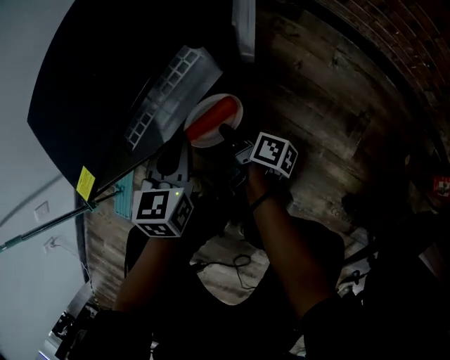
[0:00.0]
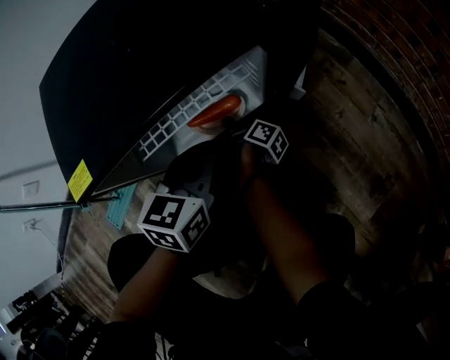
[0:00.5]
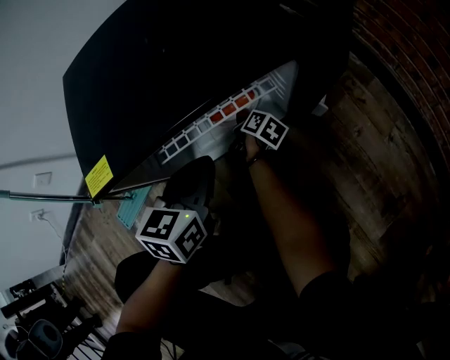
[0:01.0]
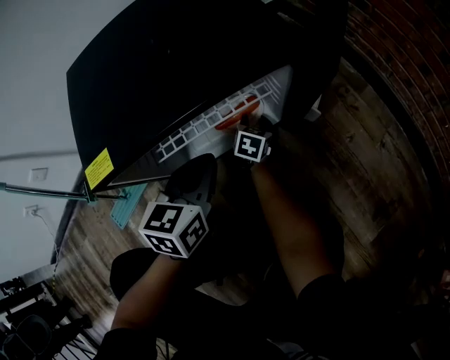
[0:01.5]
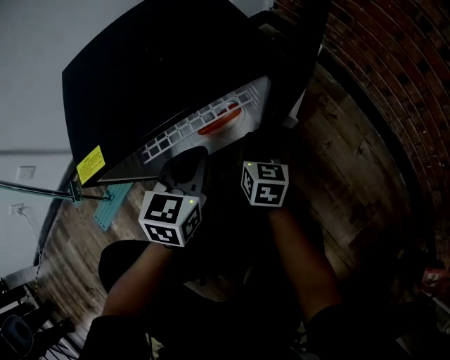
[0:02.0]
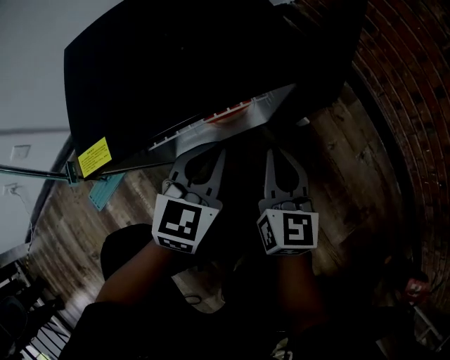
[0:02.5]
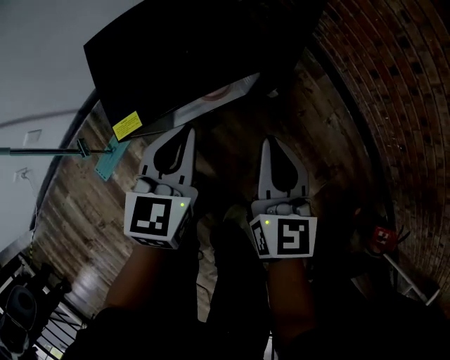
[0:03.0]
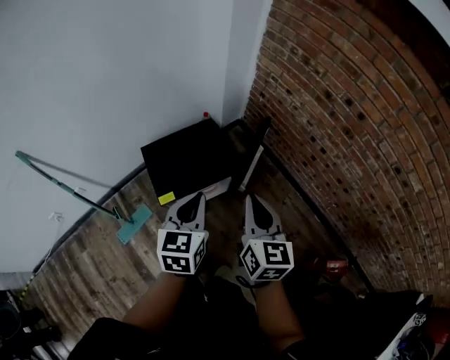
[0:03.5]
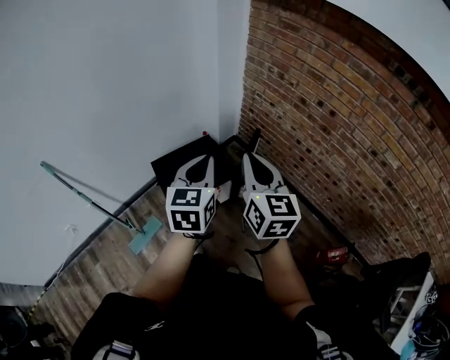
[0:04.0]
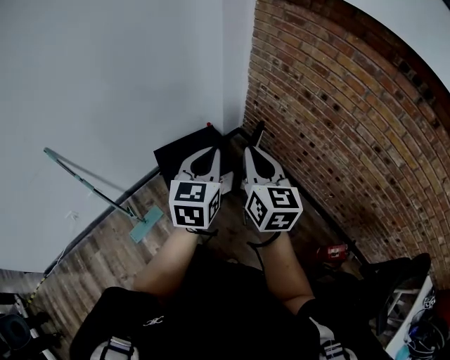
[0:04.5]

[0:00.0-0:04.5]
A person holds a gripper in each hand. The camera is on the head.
0:00.0 to 0:02.0: The left gripper changes place by roughly 5 cm.
0:02.0 to 0:04.5: The left gripper is displaced upward by some 70 cm.

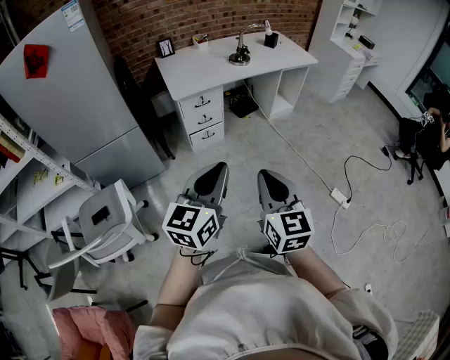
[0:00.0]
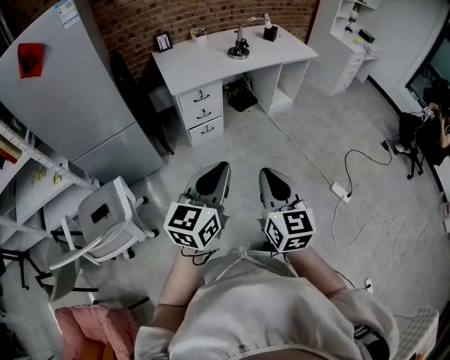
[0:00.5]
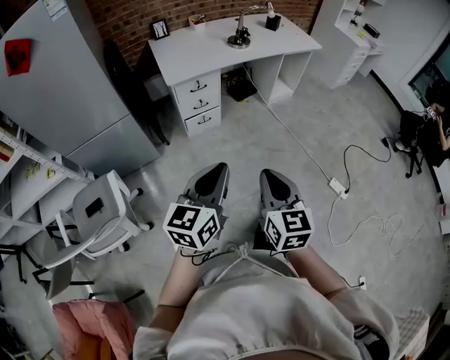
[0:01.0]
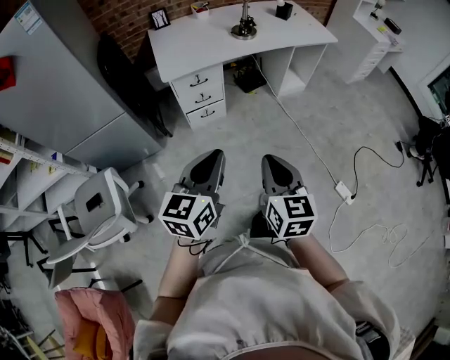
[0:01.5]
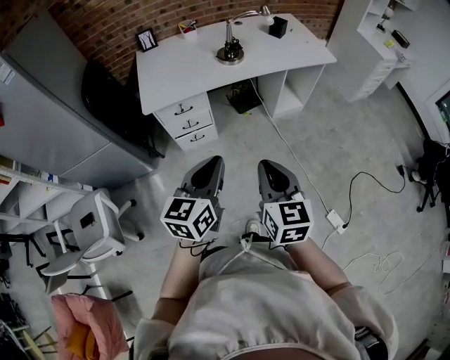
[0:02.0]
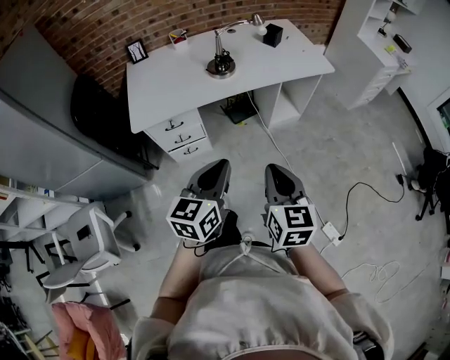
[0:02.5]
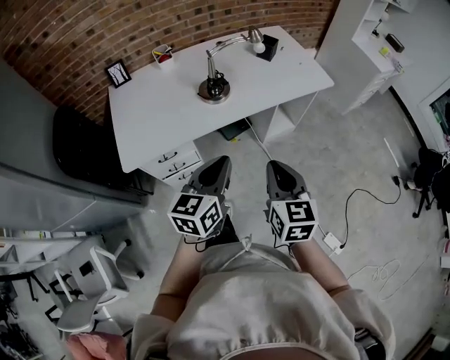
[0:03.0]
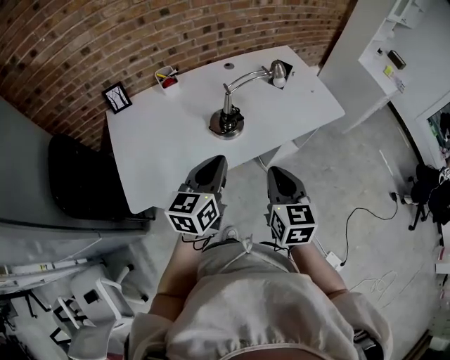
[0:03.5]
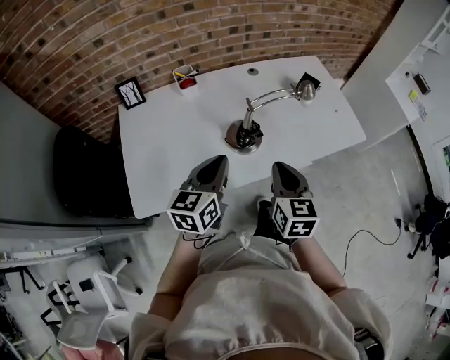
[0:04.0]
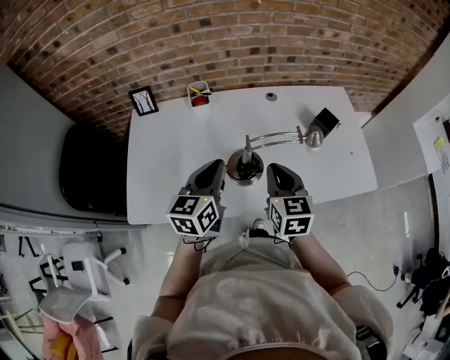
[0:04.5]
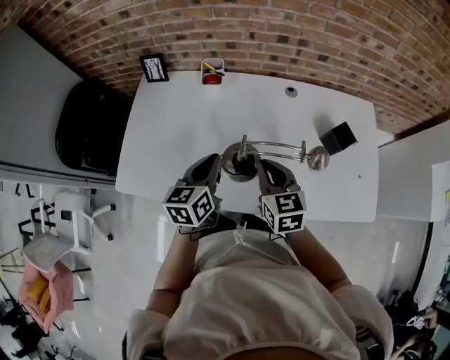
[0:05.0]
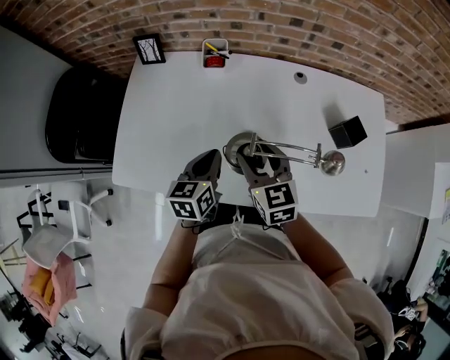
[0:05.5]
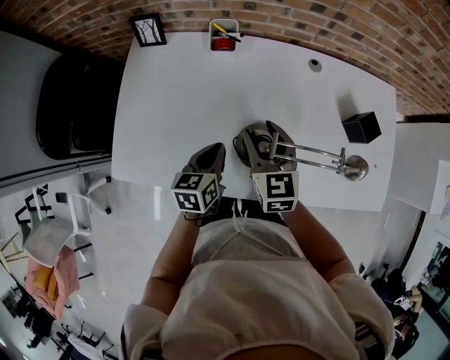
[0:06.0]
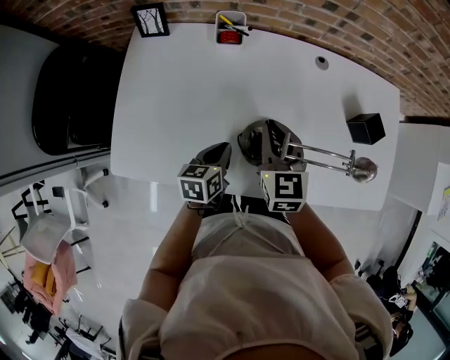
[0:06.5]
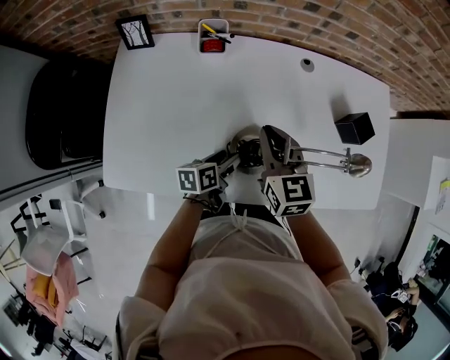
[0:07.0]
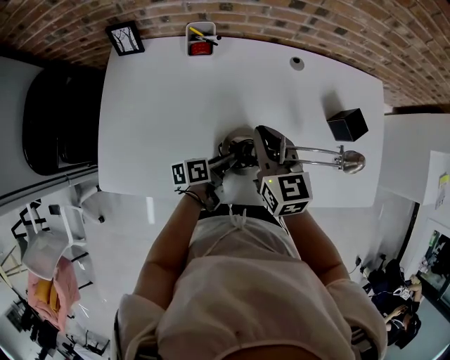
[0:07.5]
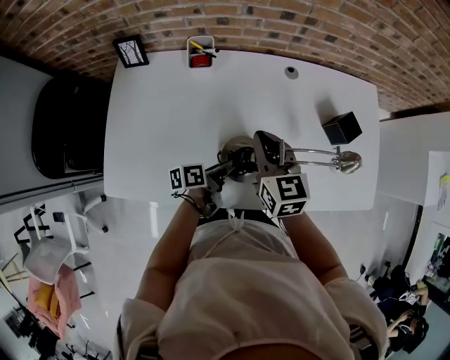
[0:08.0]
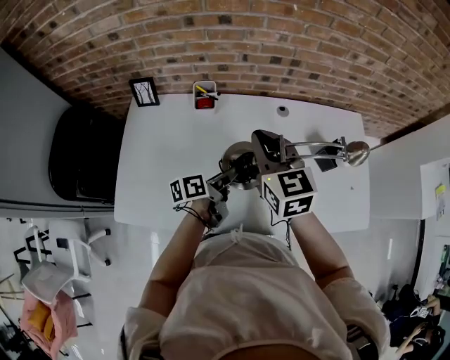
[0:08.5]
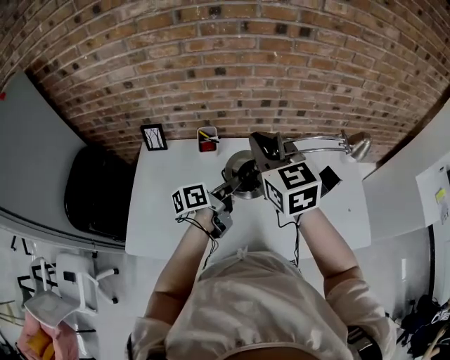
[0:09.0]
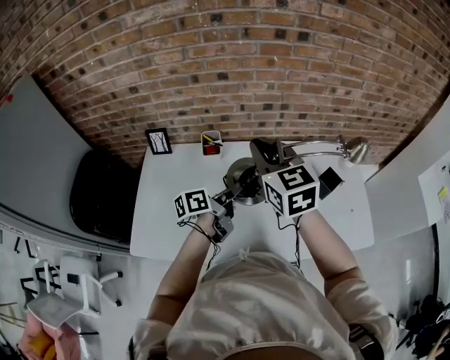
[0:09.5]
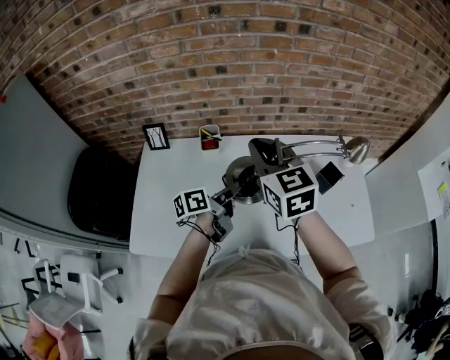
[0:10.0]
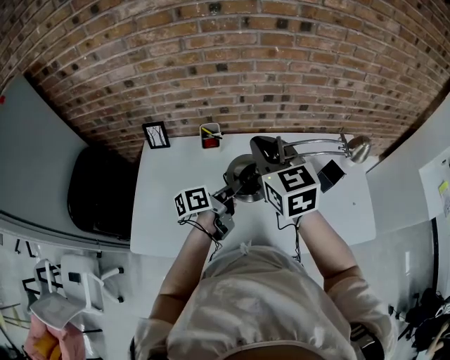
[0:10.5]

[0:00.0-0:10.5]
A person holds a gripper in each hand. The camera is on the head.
0:00.0 to 0:02.0: Both grippers move forward and to the right, roughly 35 cm.
0:02.0 to 0:04.0: The two grippers travel together, forward, approximately 50 cm.
0:04.0 to 0:06.5: The left gripper goes approximately 20 cm downward, and swivels some 40 degrees. Meanwhile the right gripper ends up roughly 25 cm from where it was, swivels roughly 30 degrees, and opens and closes again.
0:06.5 to 0:08.5: The right gripper heads upward, covering some 15 cm, while the left gripper travels upward, forward and to the right by some 15 cm, turns by about 40 degrees, and opens up.
0:08.5 to 0:10.5: Both grippers travel together upward, roughly 10 cm.

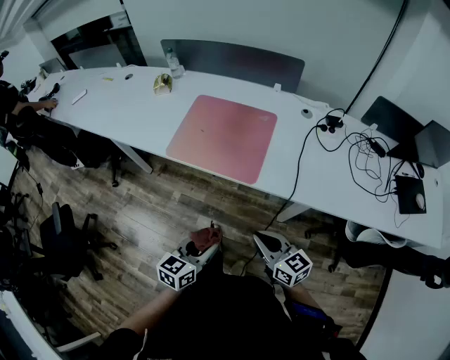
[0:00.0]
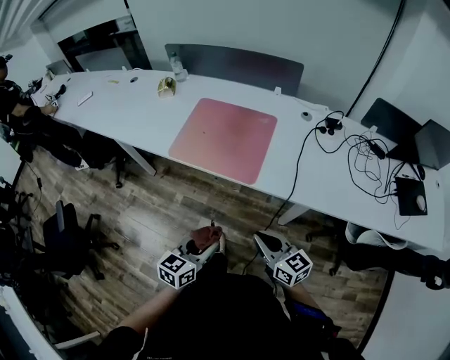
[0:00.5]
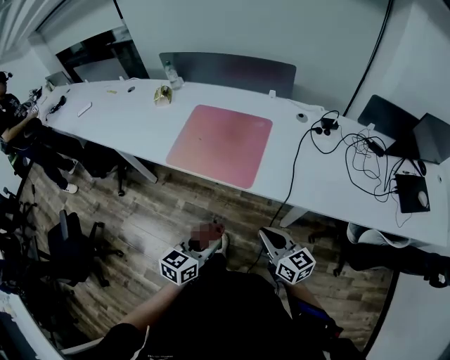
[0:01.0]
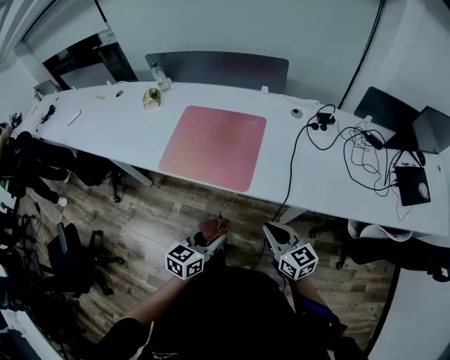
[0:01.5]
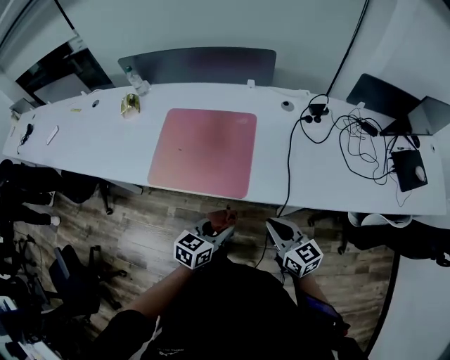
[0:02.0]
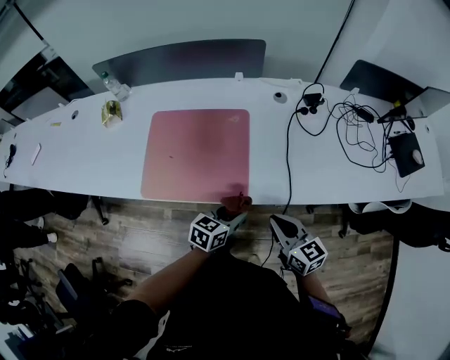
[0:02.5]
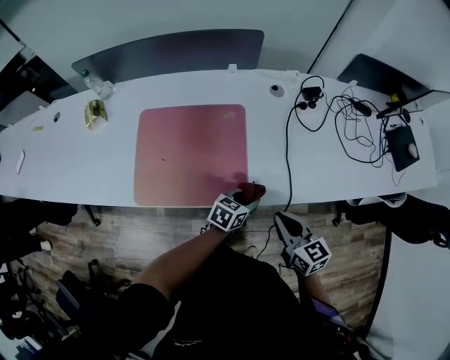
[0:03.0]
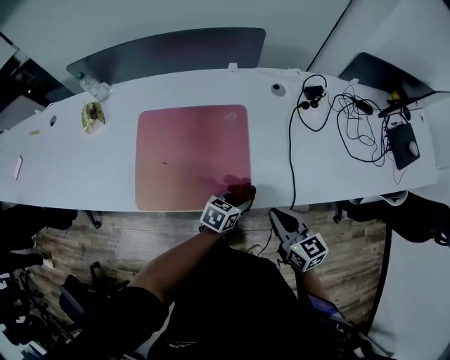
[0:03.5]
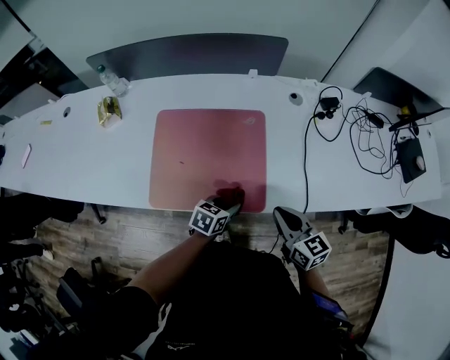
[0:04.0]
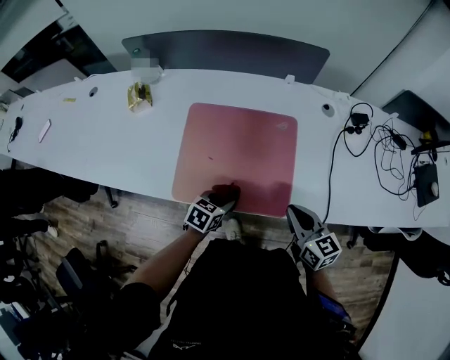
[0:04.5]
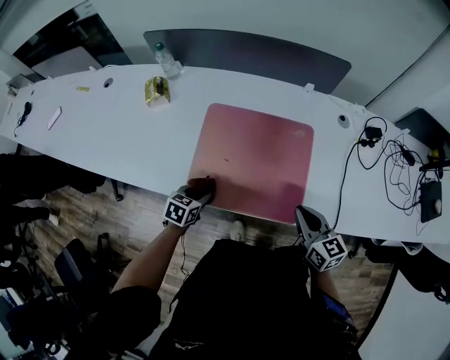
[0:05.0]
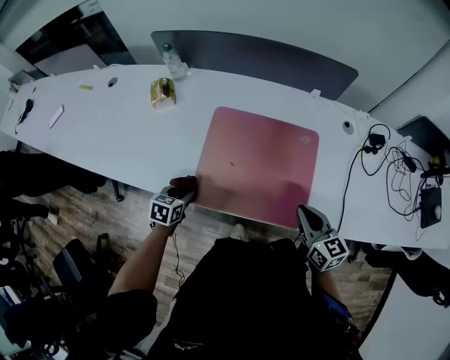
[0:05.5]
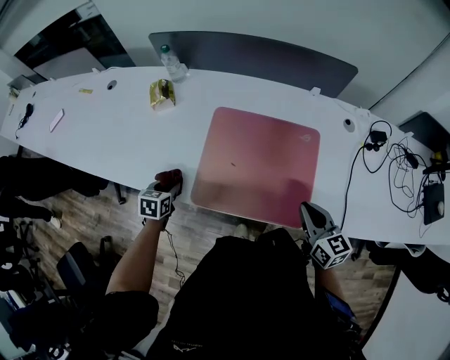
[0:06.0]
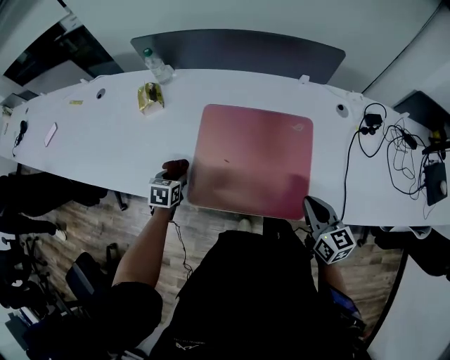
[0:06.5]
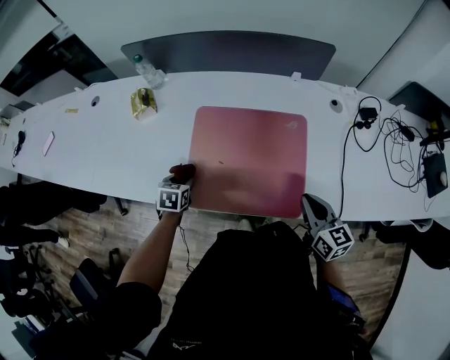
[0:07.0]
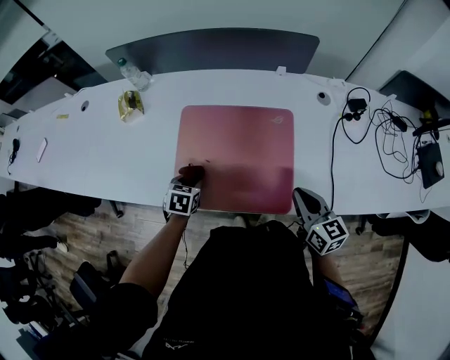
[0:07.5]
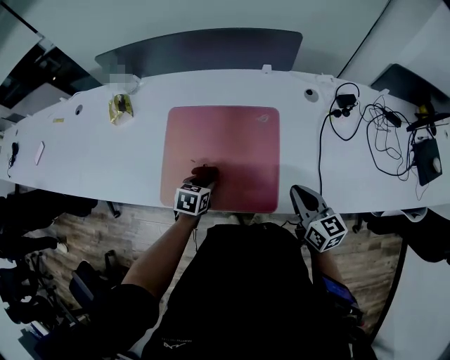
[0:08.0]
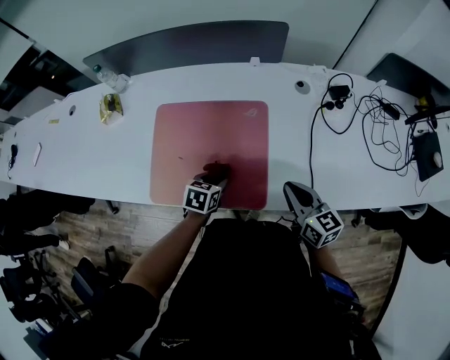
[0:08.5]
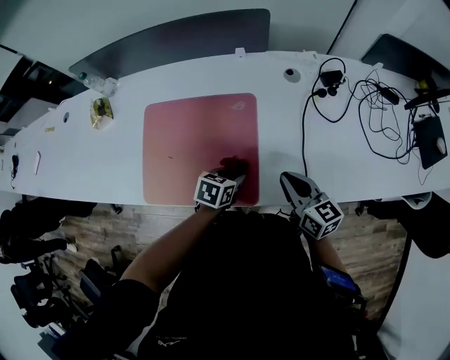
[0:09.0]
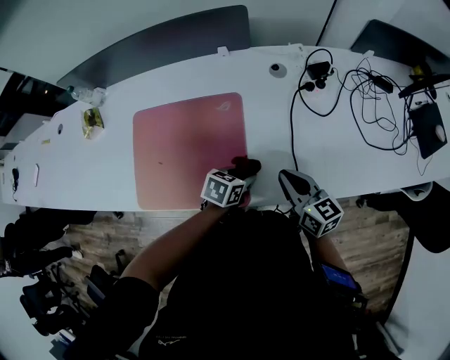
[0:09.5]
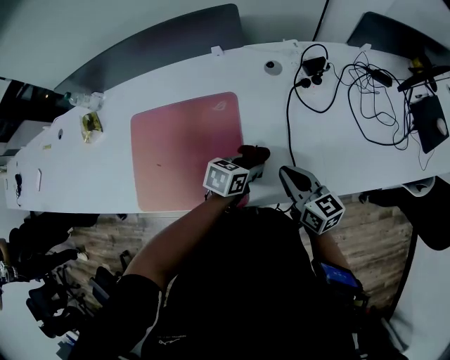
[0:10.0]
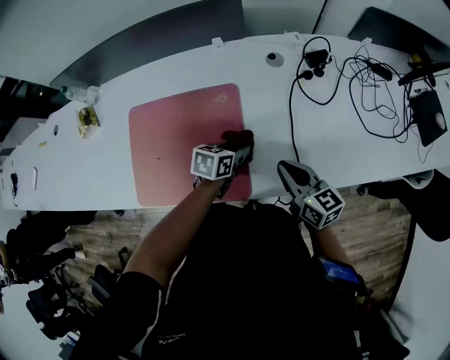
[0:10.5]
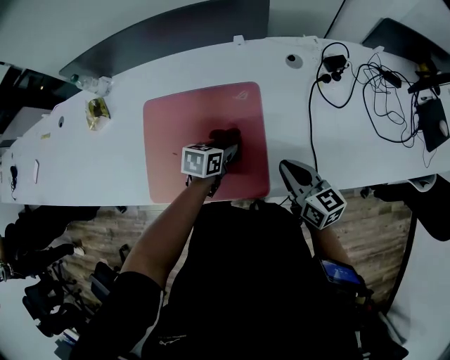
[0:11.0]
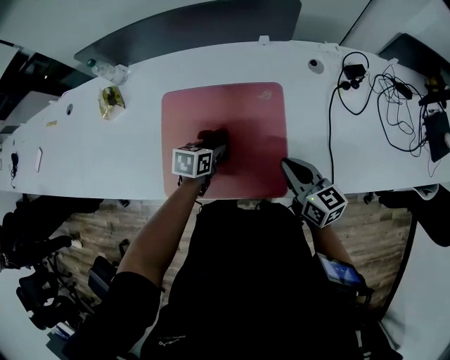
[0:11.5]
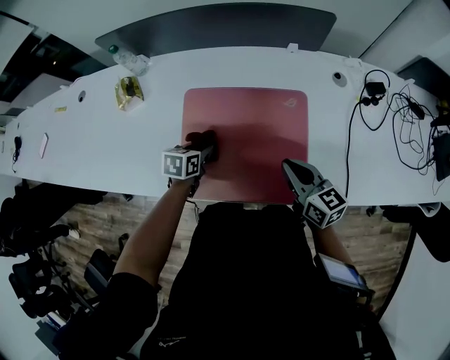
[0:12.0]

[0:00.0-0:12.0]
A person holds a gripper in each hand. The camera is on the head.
0:00.0 to 0:02.0: Both grippers travel together forward and to the right, about 15 cm.
0:02.0 to 0:04.0: The right gripper is displaced forward and to the left by some 10 cm. The left gripper moves forward, downward and to the left, roughly 20 cm, and swivels roughly 20 degrees.
0:04.0 to 0:06.0: The right gripper moves about 10 cm. The left gripper shifts by approximately 40 cm, and swivels approximately 40 degrees.
0:06.0 to 0:08.0: The right gripper travels to the right by about 10 cm. The left gripper moves to the right, roughly 25 cm.
0:08.0 to 0:10.0: The right gripper moves to the right, some 10 cm. The left gripper heads to the right, covering approximately 30 cm, and changes its angle by roughly 30 degrees.
0:10.0 to 0:12.0: The left gripper goes roughly 40 cm to the left, and changes its angle by approximately 20 degrees, while the right gripper travels to the left by some 20 cm.
